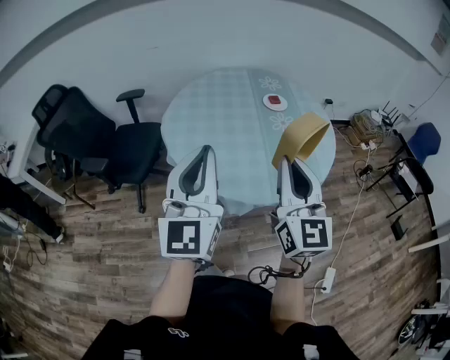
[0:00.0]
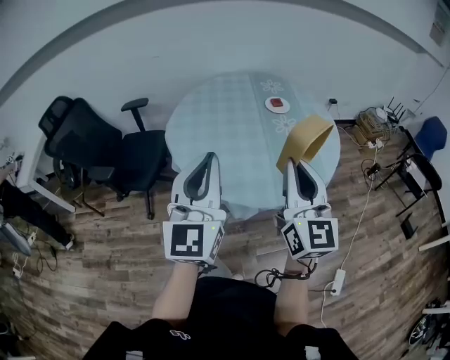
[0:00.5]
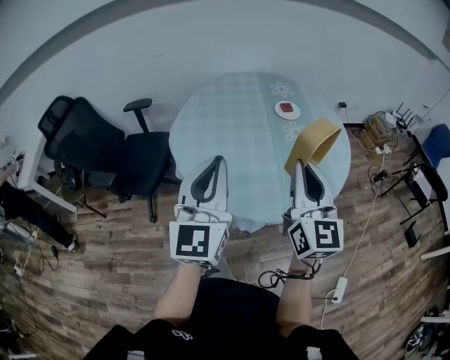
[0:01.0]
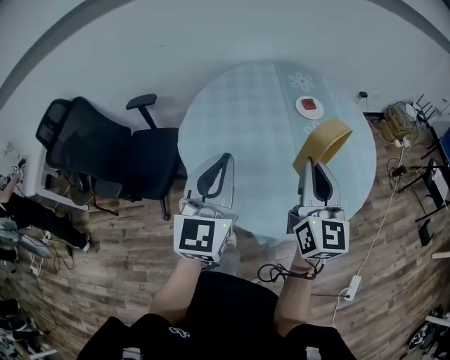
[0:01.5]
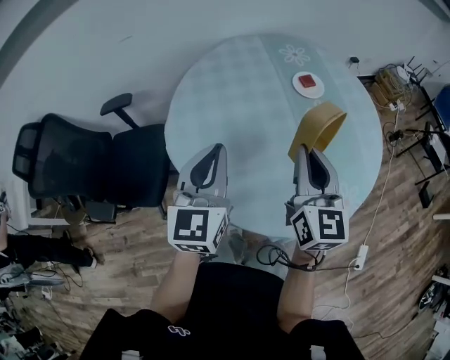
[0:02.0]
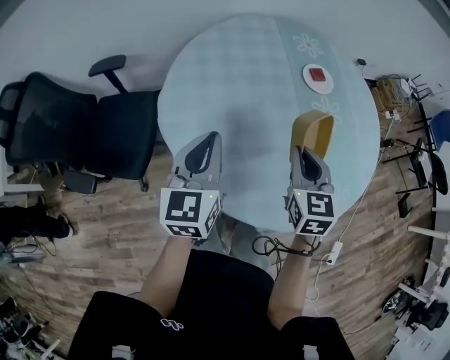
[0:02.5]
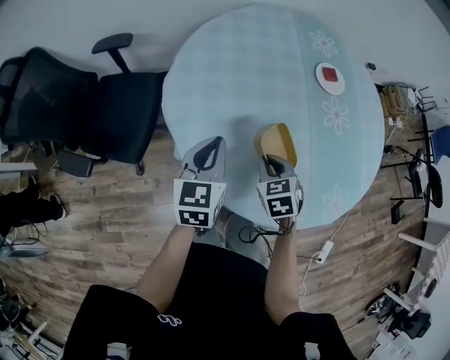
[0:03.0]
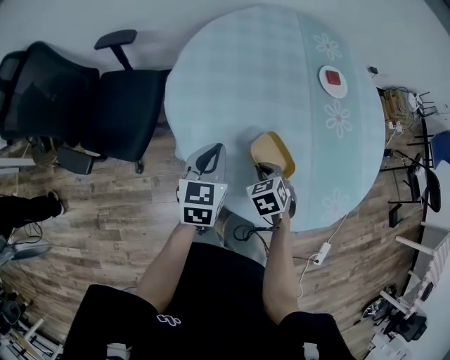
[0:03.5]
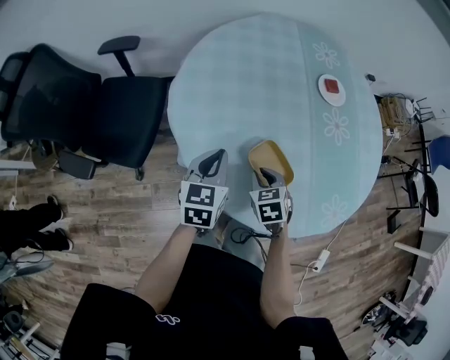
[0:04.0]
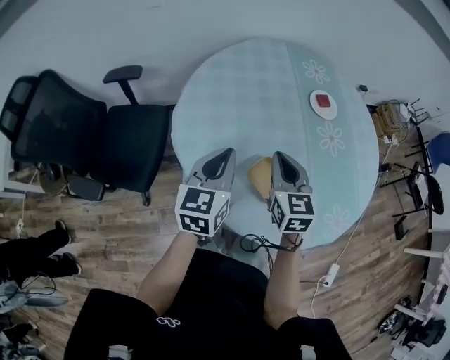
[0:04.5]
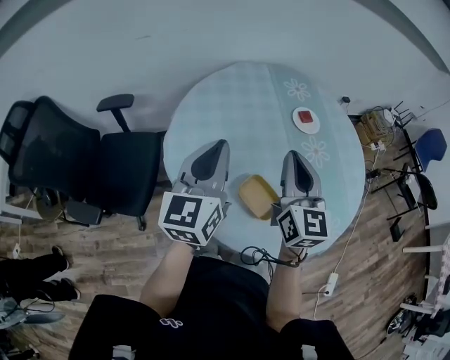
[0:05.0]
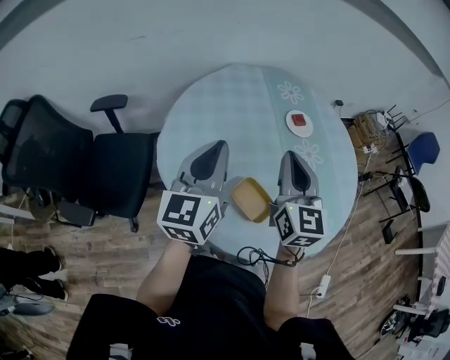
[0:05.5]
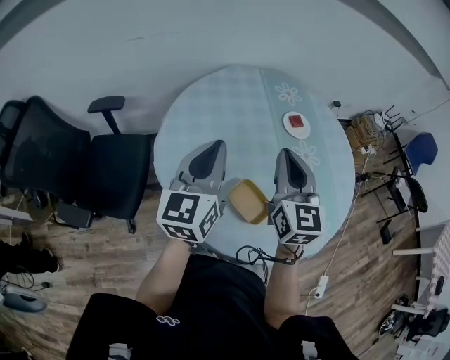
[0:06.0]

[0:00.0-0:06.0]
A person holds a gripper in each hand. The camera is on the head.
0:00.0 to 0:02.0: The right gripper heads forward, covering roughly 30 cm. The left gripper shifts approximately 35 cm forward and downward, and changes its angle by about 20 degrees.
0:02.0 to 0:04.0: The right gripper heads downward, covering roughly 30 cm, and tips its fingers downward by roughly 50 degrees. The left gripper heads downward, covering some 20 cm, and rotates about 30 degrees.
0:04.0 to 0:06.0: The two grippers go about 25 cm upward. The right gripper angles its fingers upward, by approximately 50 degrees, while the left gripper points its fingers about 30 degrees further upward.

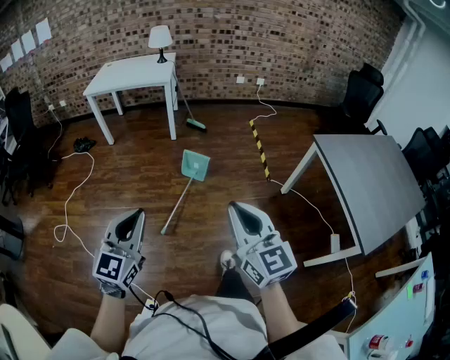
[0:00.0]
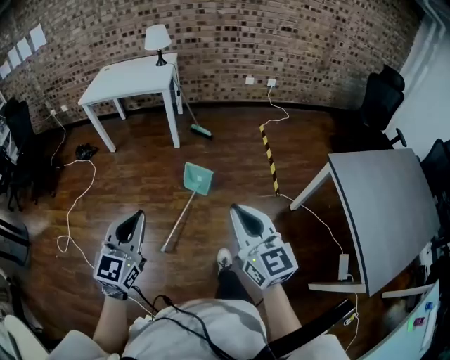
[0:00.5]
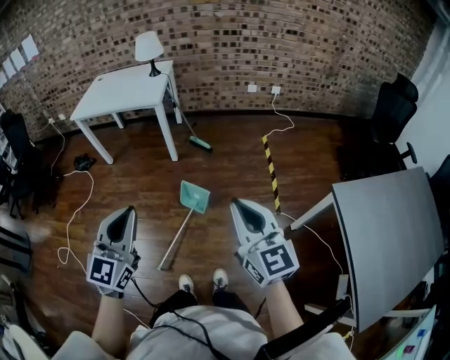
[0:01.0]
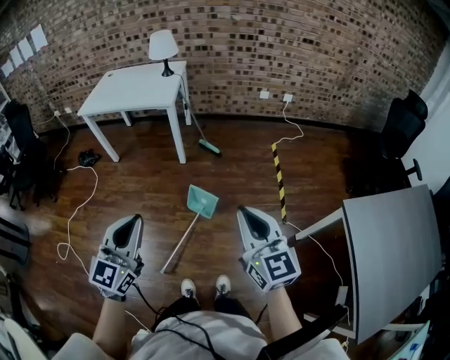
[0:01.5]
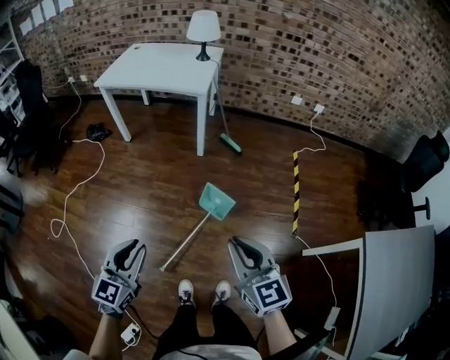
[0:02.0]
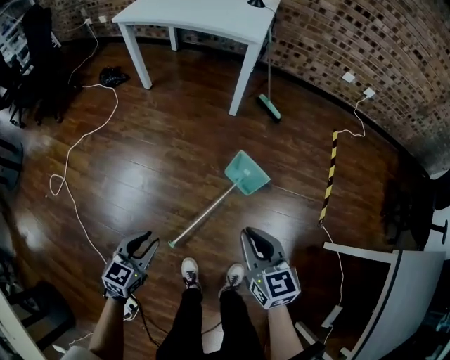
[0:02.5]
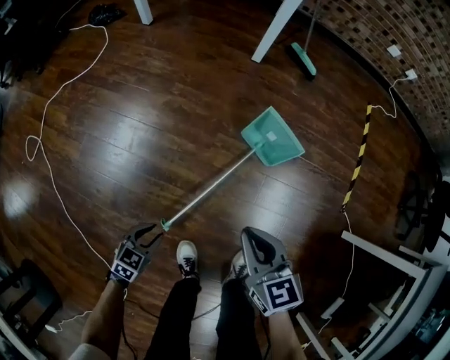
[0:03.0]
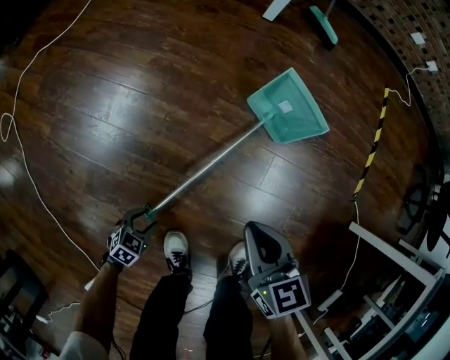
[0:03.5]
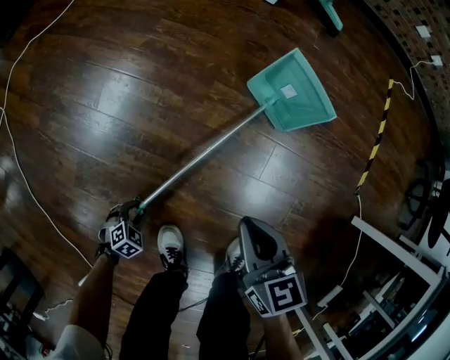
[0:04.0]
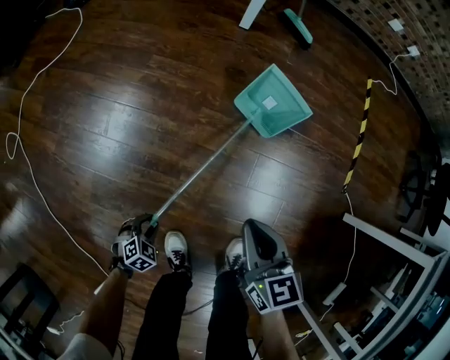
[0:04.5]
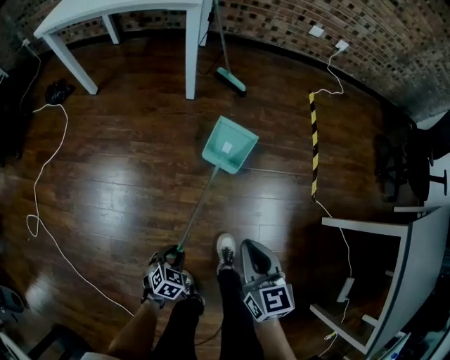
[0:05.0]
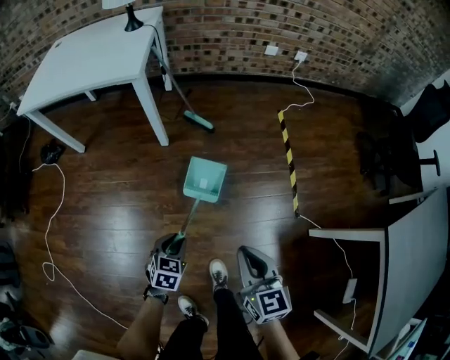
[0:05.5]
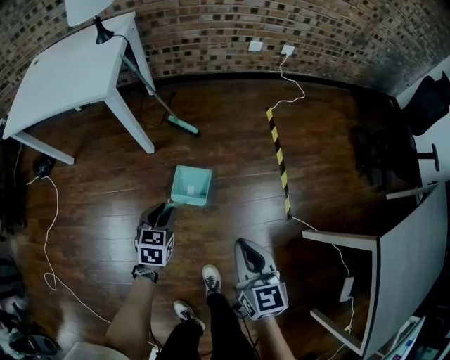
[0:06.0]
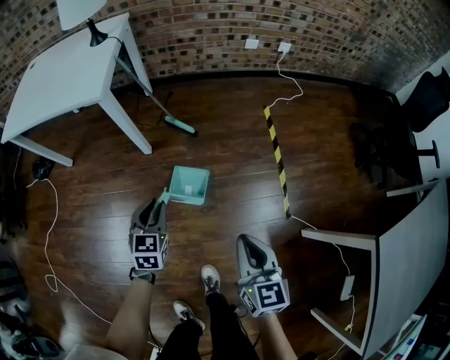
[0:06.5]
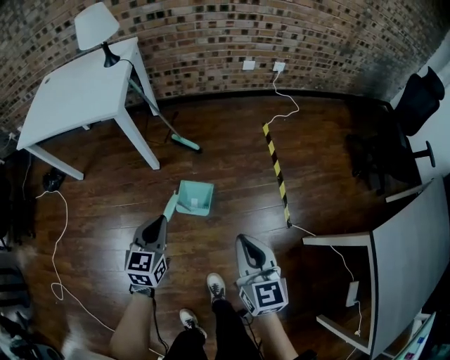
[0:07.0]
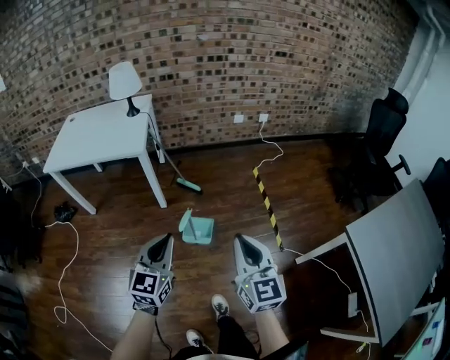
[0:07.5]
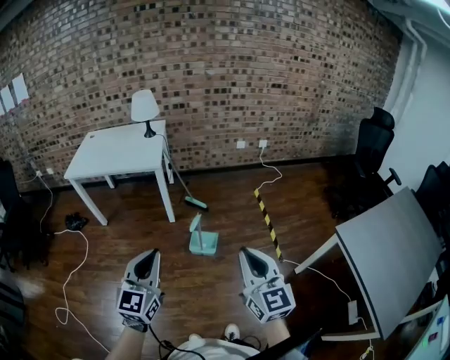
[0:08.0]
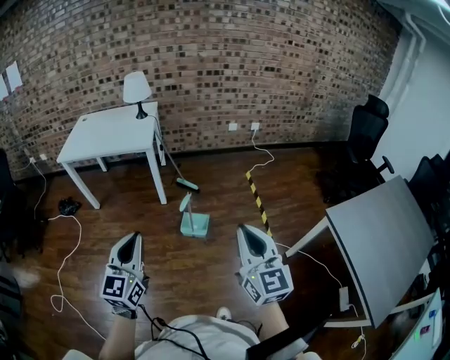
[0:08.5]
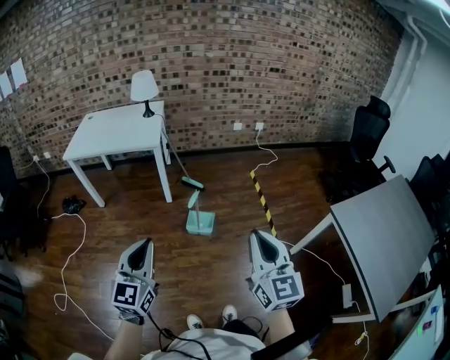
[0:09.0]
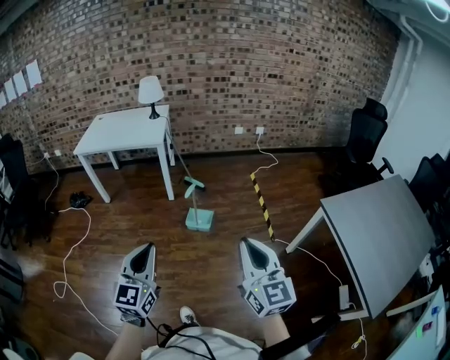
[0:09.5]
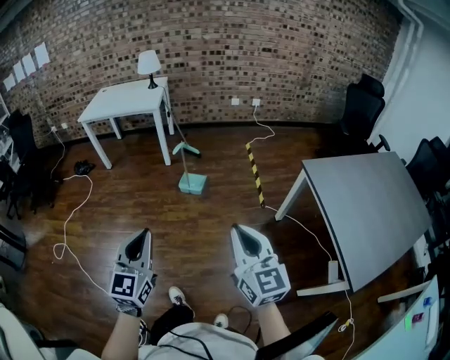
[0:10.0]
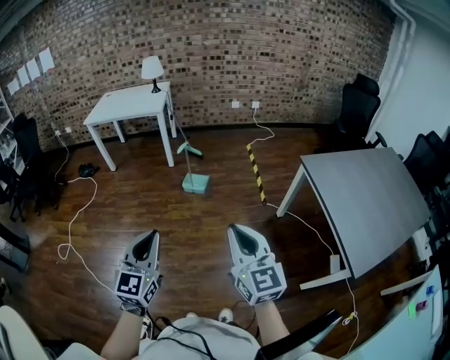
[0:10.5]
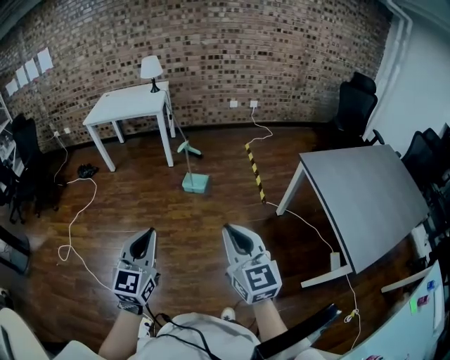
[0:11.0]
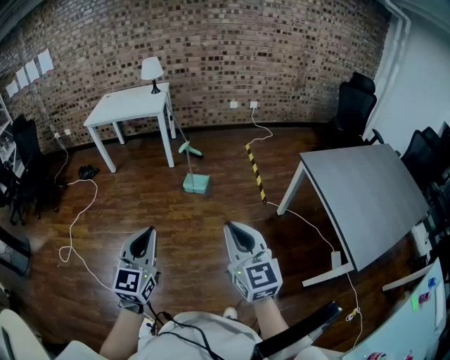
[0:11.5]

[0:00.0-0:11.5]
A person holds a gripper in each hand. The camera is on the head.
0:00.0 to 0:02.0: The grippers both shift forward by about 40 cm.
0:02.0 to 0:04.0: Both grippers travel together downward, approximately 70 cm. The right gripper turns by about 30 degrees. The left gripper tilts its fingers approximately 60 degrees downward.
0:04.0 to 0:06.0: The left gripper moves about 90 cm, and angles its fingers upward, by approximately 30 degrees, while the right gripper goes some 40 cm upward, and changes its angle by roughly 40 degrees.
0:06.0 to 0:07.5: The two grippers go roughly 30 cm upward and backward. The left gripper points its fingers roughly 30 degrees further upward, and closes. The right gripper swivels roughly 20 degrees.
0:07.5 to 0:09.5: Both grippers move backward, approximately 35 cm.
0:09.5 to 0:11.5: The grippers both shift backward by roughly 25 cm.

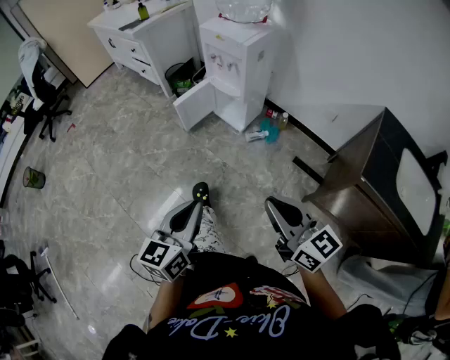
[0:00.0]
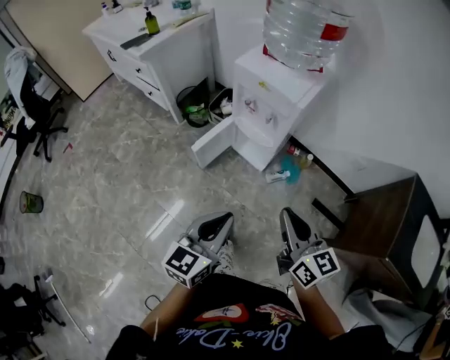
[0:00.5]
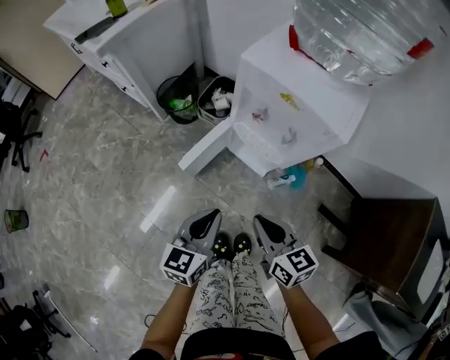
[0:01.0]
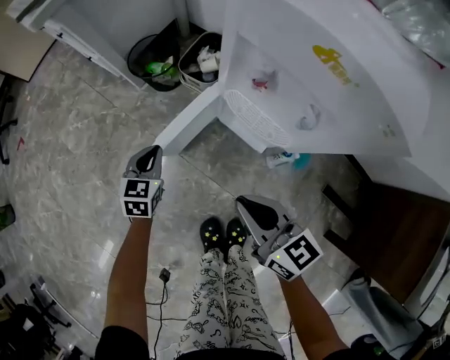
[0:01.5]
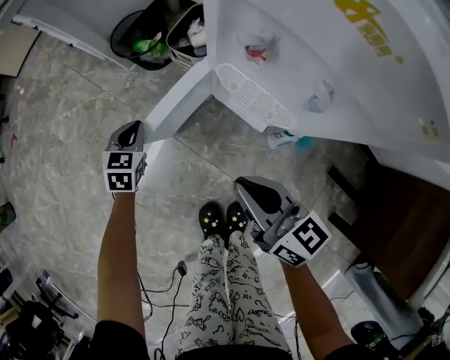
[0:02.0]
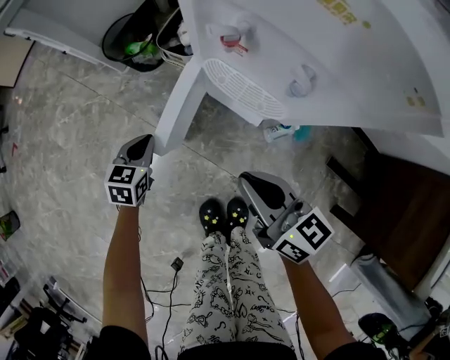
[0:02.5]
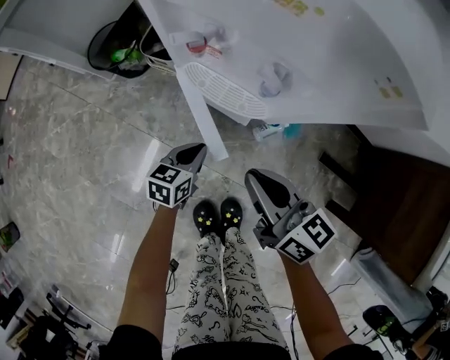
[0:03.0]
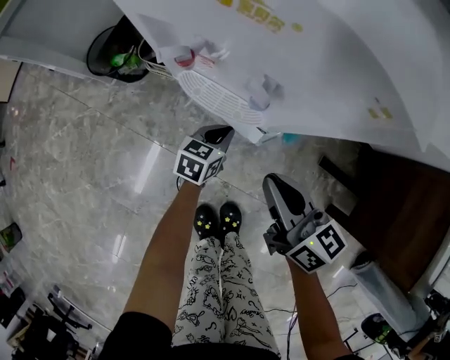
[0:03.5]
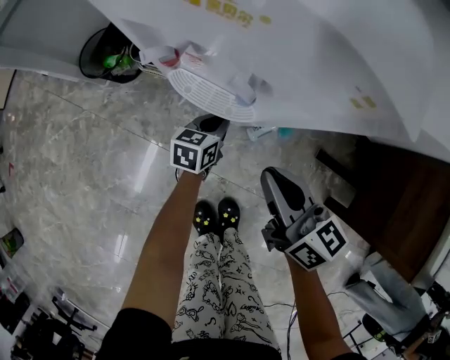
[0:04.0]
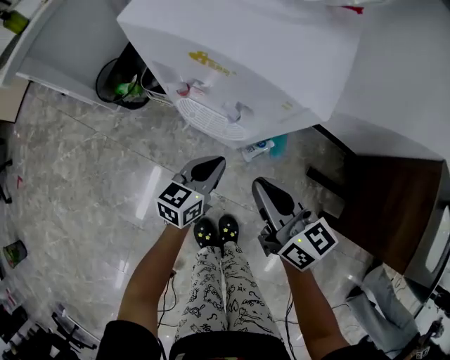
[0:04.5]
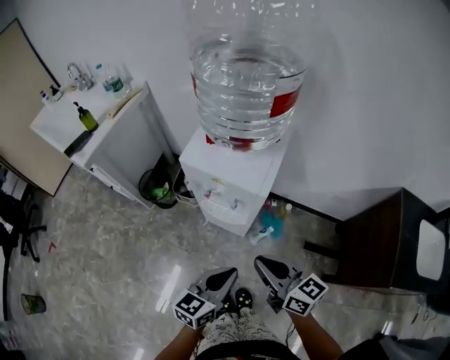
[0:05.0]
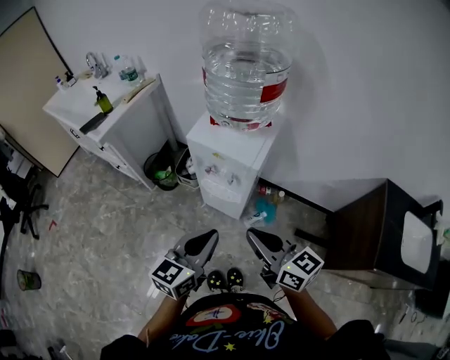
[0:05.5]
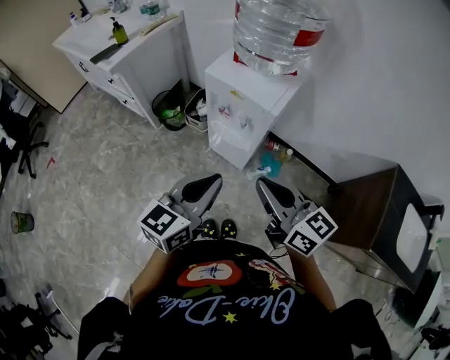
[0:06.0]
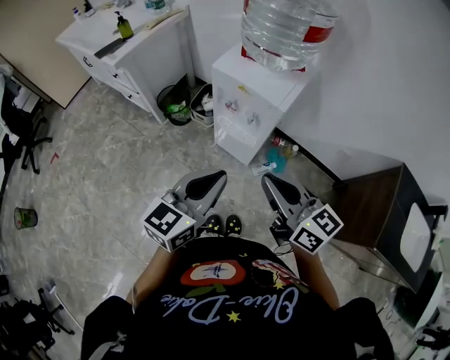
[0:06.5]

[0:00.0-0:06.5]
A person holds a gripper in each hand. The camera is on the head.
0:00.0 to 0:02.0: Both grippers are carried forward, some 60 cm. The grippers both shift downward by approximately 40 cm. The left gripper points its fingers about 40 degrees further downward.
0:02.0 to 0:04.5: The left gripper moves approximately 35 cm, and swivels roughly 50 degrees; the right gripper shifts by about 15 cm.
0:04.5 to 0:06.5: The two grippers go some 40 cm upward and backward.

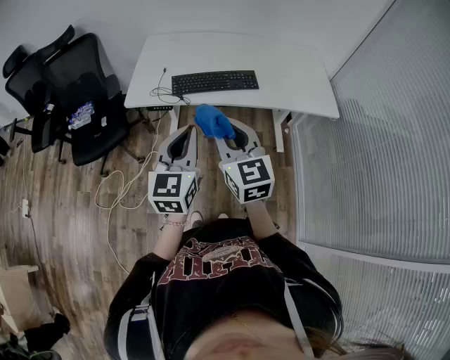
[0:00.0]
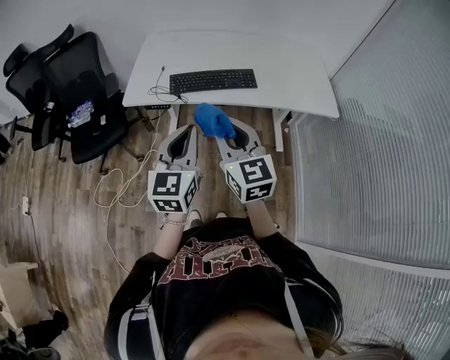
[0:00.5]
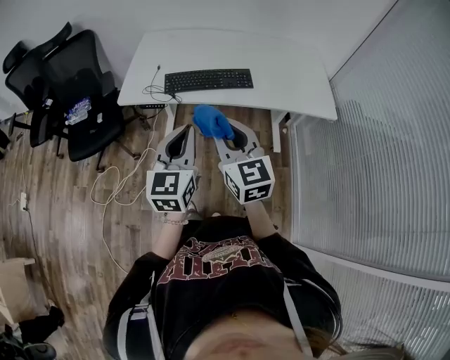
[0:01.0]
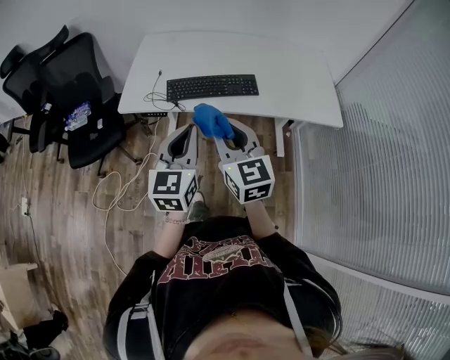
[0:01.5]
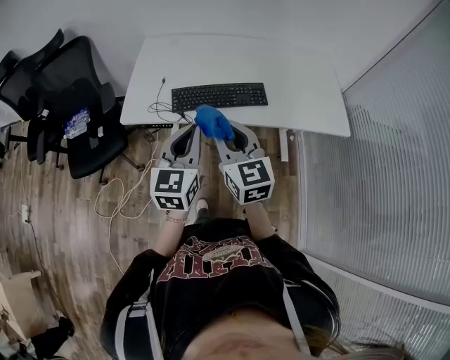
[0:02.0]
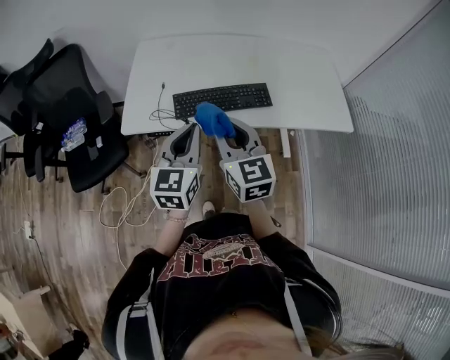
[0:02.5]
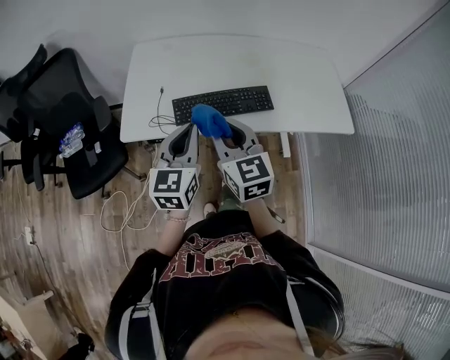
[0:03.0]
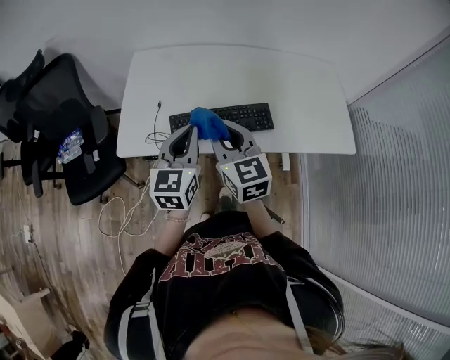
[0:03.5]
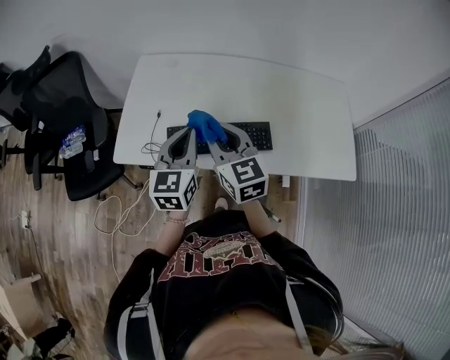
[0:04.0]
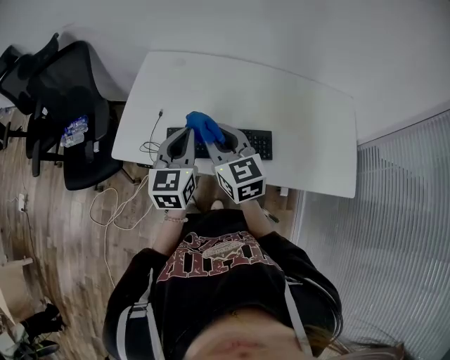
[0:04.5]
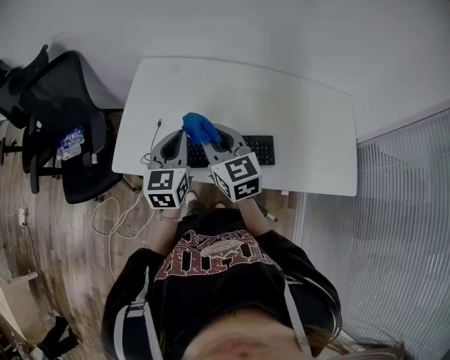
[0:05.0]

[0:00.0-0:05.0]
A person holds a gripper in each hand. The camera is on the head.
0:00.0 to 0:02.5: Both grippers move forward, about 20 cm.
0:02.5 to 0:05.0: Both grippers travel together forward, some 25 cm.
